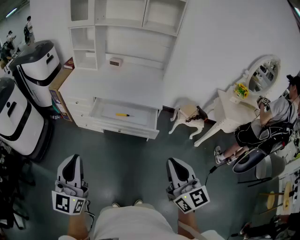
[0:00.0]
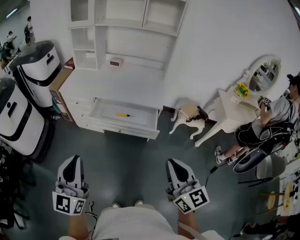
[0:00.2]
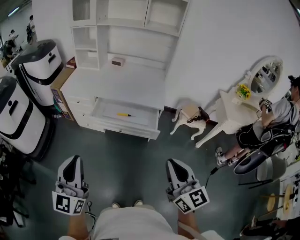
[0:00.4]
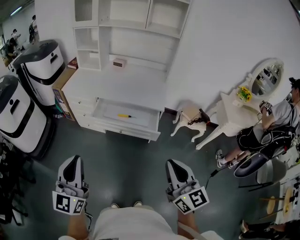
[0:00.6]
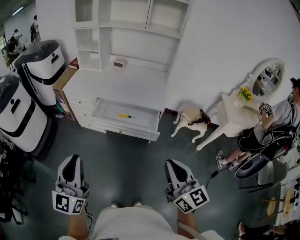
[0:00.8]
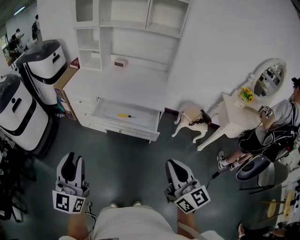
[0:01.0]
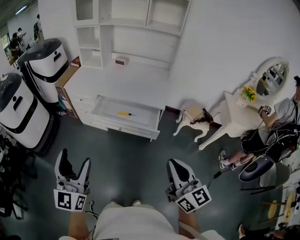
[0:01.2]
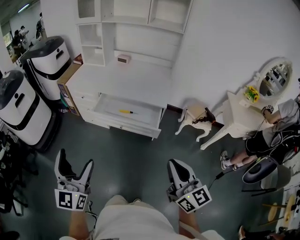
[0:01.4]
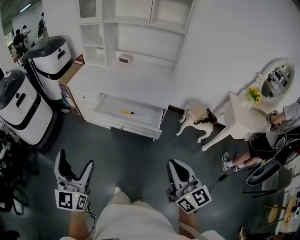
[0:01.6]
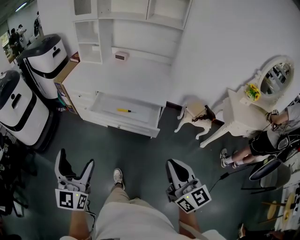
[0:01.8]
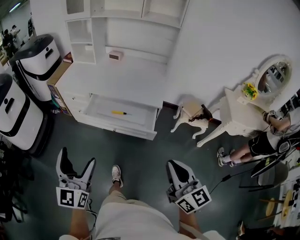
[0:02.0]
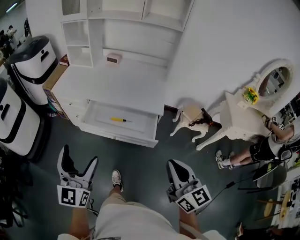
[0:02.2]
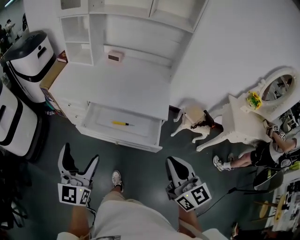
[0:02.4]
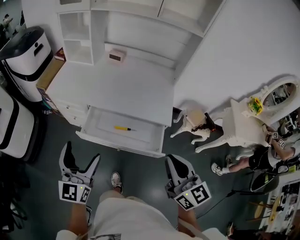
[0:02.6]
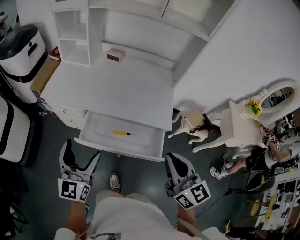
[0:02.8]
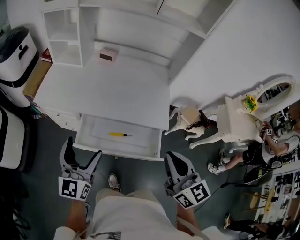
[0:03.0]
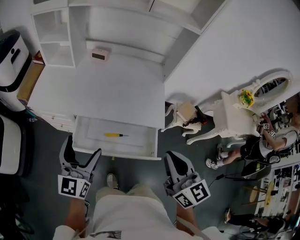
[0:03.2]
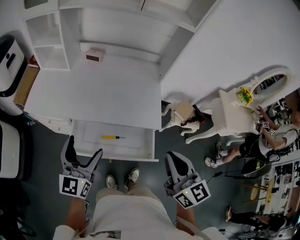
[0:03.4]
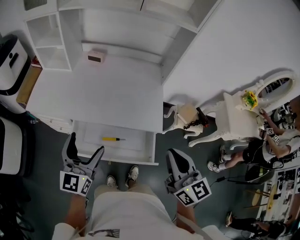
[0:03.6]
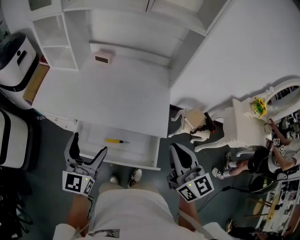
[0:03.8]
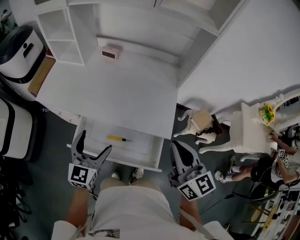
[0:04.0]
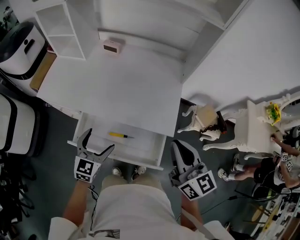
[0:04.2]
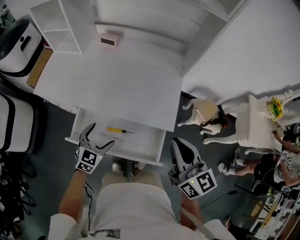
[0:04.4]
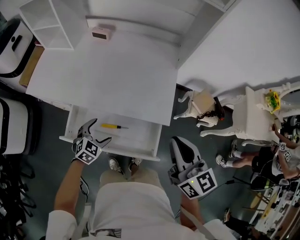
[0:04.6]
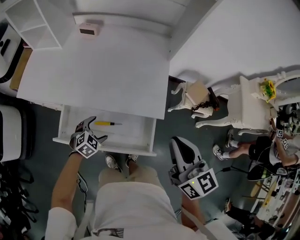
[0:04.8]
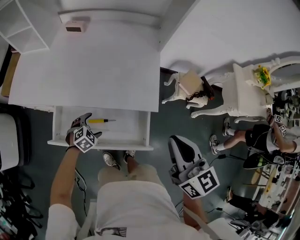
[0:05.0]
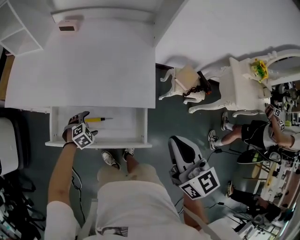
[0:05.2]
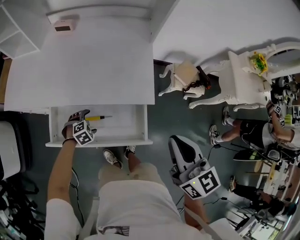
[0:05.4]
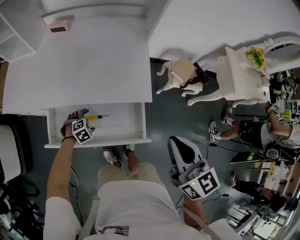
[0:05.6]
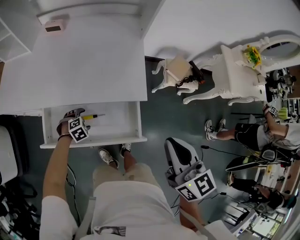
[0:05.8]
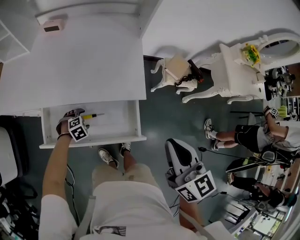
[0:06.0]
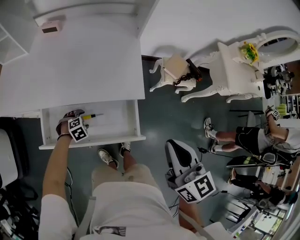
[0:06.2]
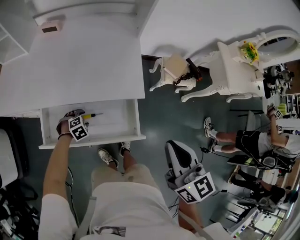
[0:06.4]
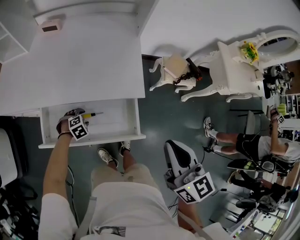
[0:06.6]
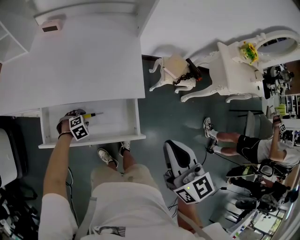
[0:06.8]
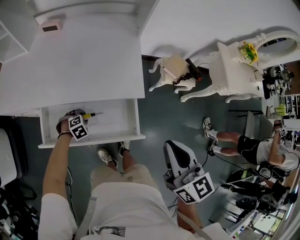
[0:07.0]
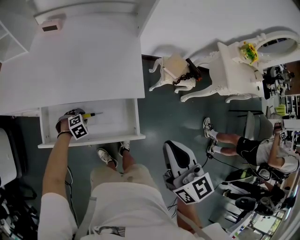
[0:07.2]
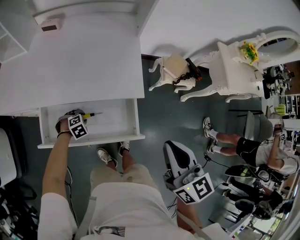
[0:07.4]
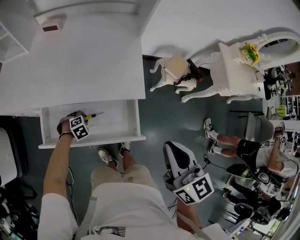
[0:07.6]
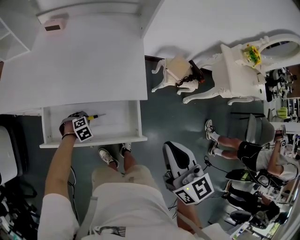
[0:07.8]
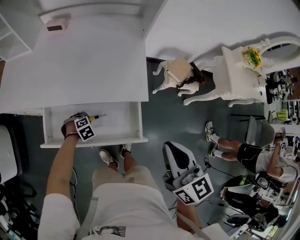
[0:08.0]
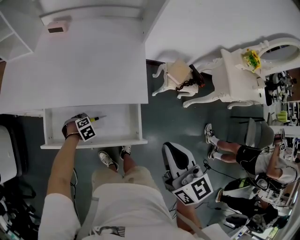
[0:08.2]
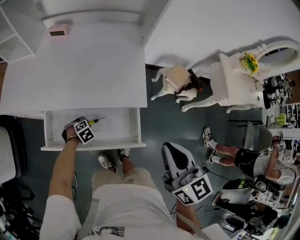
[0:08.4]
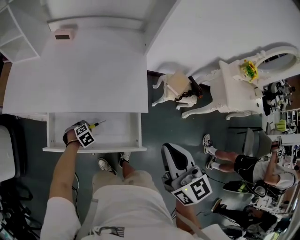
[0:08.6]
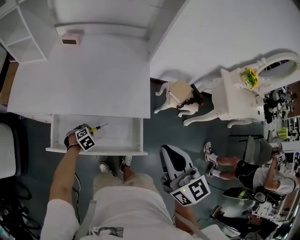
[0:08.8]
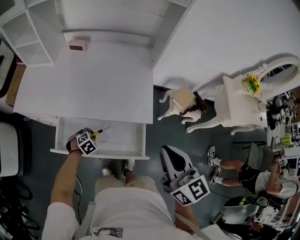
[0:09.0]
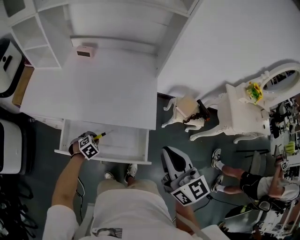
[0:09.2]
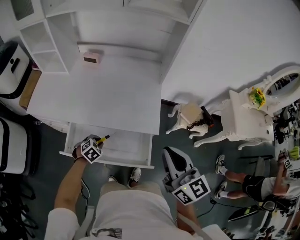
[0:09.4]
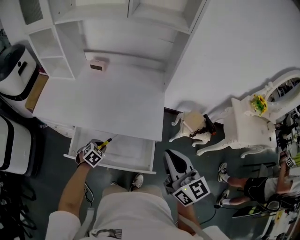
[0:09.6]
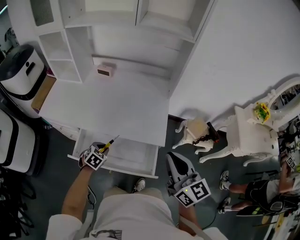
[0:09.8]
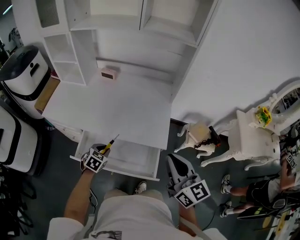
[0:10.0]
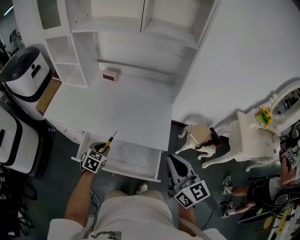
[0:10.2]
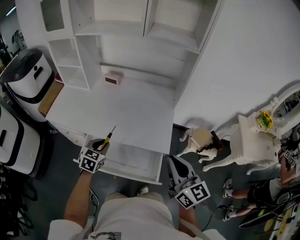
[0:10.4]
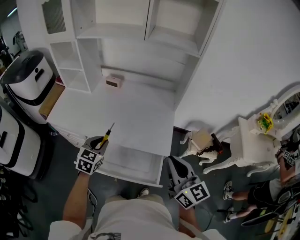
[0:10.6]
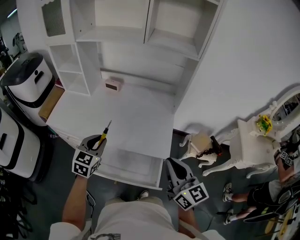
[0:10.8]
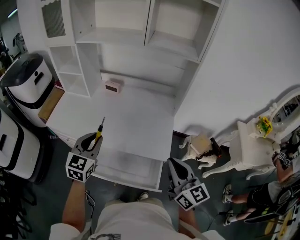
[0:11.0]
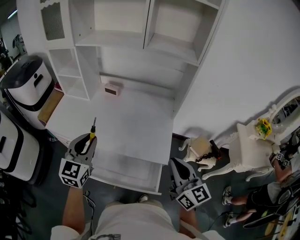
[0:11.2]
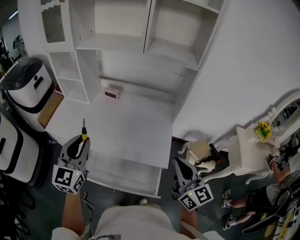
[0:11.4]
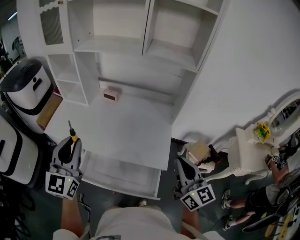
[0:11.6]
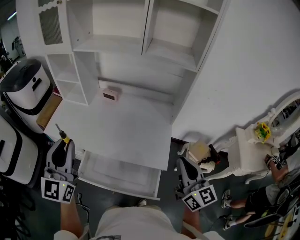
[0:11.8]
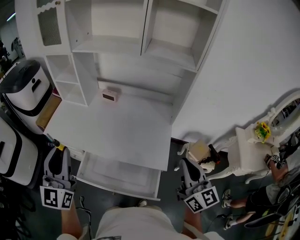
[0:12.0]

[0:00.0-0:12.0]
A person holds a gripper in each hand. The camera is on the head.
0:00.0 to 0:01.6: The right gripper travels to the right by roughly 5 cm, while the left gripper shifts by about 5 cm, and opens.
0:01.6 to 0:03.0: The two grippers go approximately 40 cm forward.
0:03.0 to 0:04.4: The right gripper shifts approximately 20 cm forward, to the right and downward. Meanwhile the left gripper goes roughly 30 cm downward, to the right and forward, and tips its fingers downward by about 40 degrees.
0:04.4 to 0:06.0: The left gripper is displaced downward by roughly 25 cm, and tips its fingers downward by some 40 degrees; the right gripper changes place by some 10 cm.
0:06.0 to 0:07.6: The left gripper closes up.
0:07.6 to 0:09.0: The grippers both shift upward by about 5 cm.
0:09.0 to 0:10.4: The left gripper is displaced upward by roughly 25 cm, and tilts its fingers approximately 40 degrees upward.
0:10.4 to 0:12.0: The left gripper goes some 30 cm upward, and tilts its fingers some 50 degrees upward; the right gripper travels upward and forward by some 10 cm.

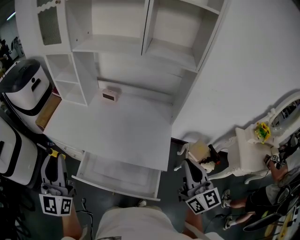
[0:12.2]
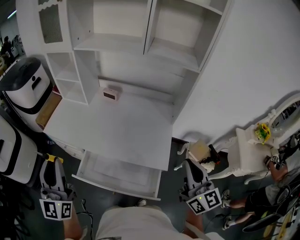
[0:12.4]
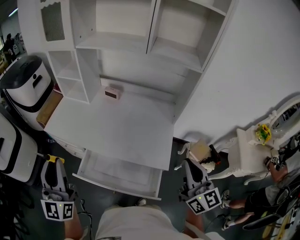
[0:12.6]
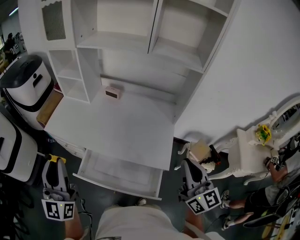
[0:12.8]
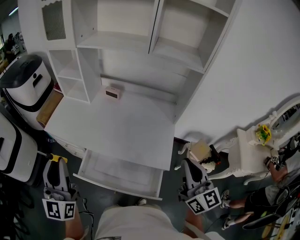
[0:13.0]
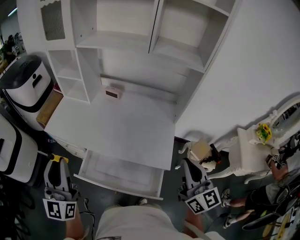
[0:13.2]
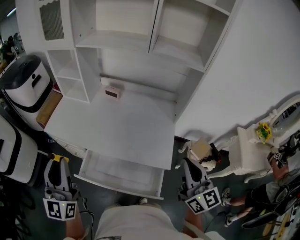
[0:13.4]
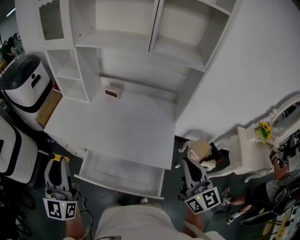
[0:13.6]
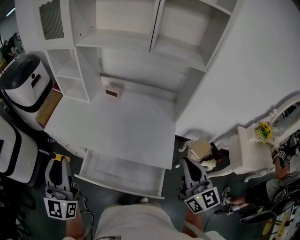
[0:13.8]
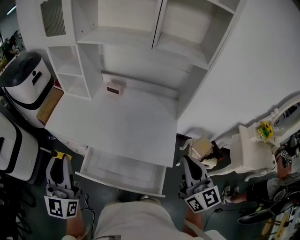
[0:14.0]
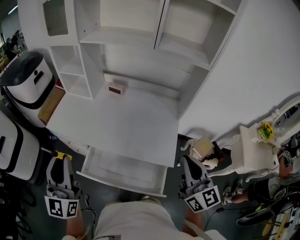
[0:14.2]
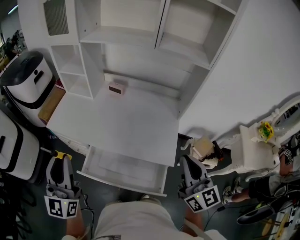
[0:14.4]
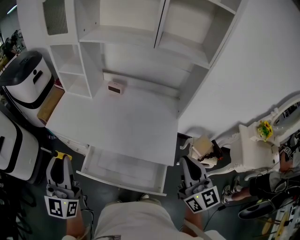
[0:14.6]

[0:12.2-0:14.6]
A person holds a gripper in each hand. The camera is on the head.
0:12.2 to 0:13.4: There are only small adjustments of the grippers.
0:13.4 to 0:14.6: The grippers move only a little.

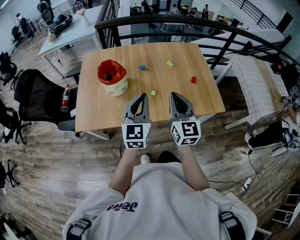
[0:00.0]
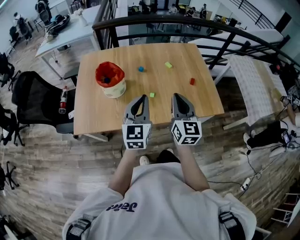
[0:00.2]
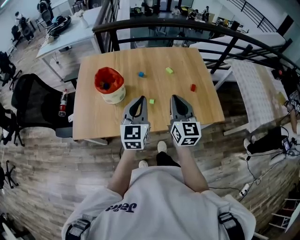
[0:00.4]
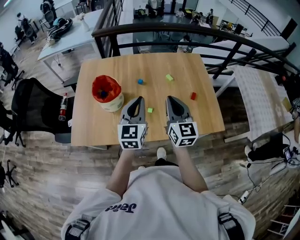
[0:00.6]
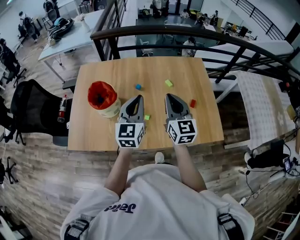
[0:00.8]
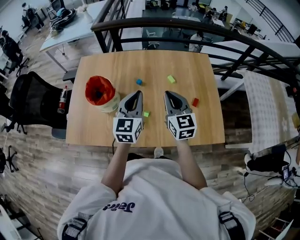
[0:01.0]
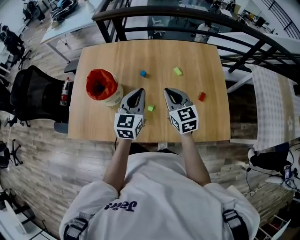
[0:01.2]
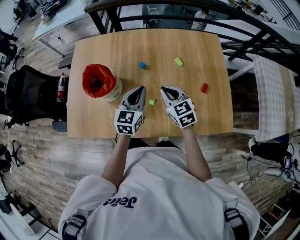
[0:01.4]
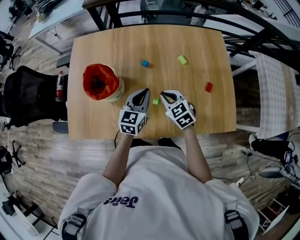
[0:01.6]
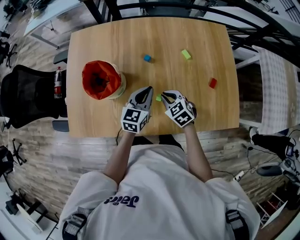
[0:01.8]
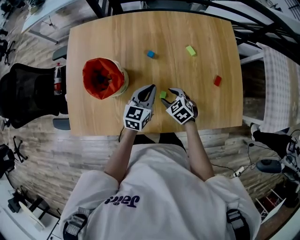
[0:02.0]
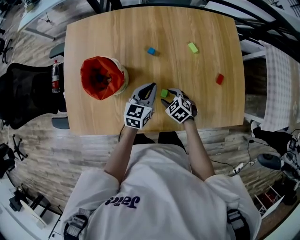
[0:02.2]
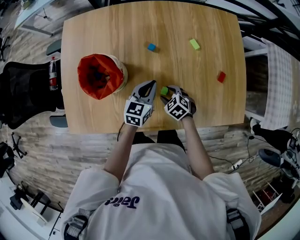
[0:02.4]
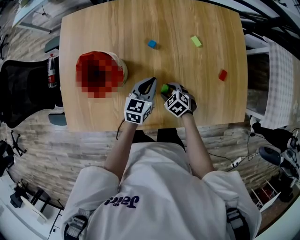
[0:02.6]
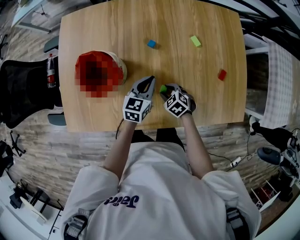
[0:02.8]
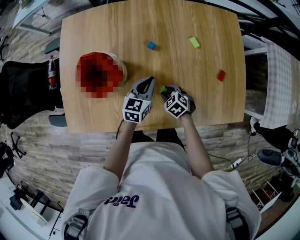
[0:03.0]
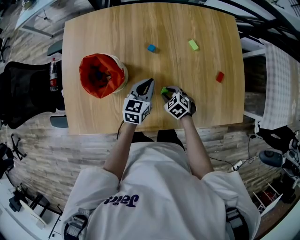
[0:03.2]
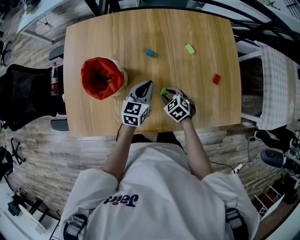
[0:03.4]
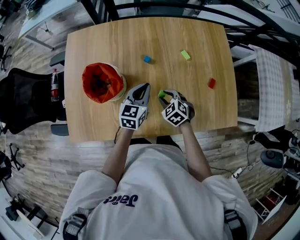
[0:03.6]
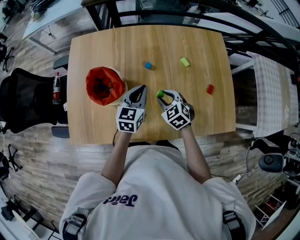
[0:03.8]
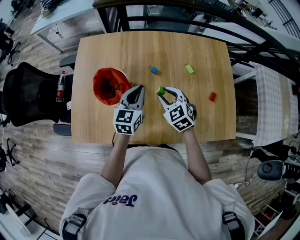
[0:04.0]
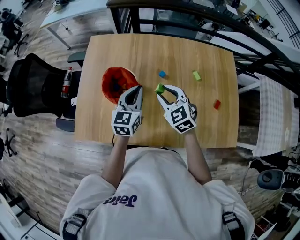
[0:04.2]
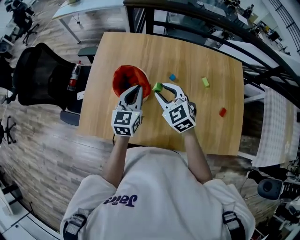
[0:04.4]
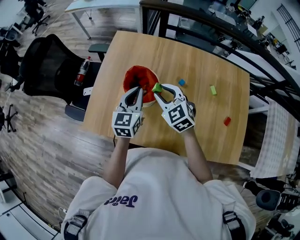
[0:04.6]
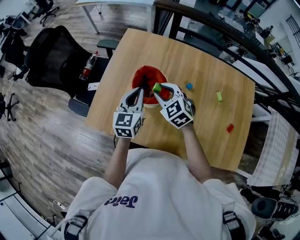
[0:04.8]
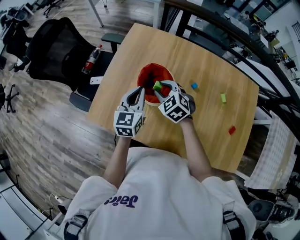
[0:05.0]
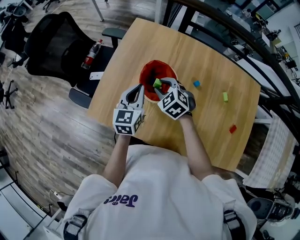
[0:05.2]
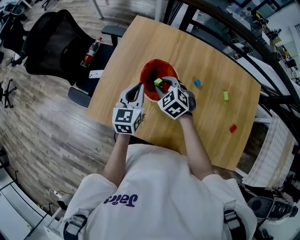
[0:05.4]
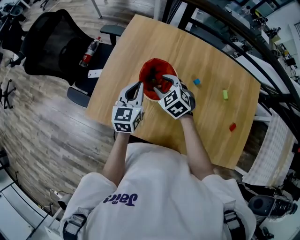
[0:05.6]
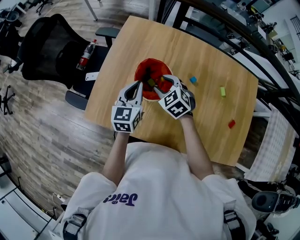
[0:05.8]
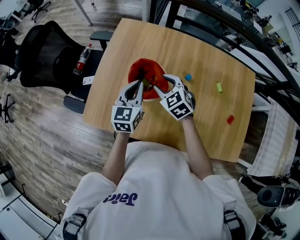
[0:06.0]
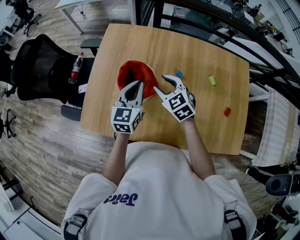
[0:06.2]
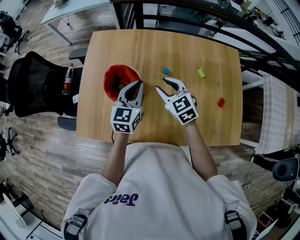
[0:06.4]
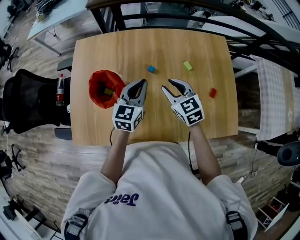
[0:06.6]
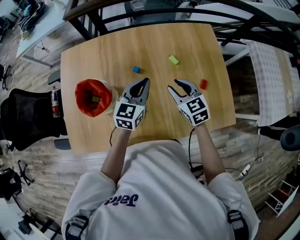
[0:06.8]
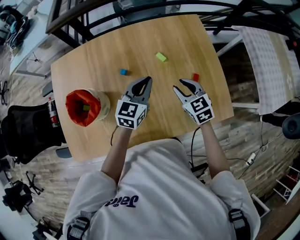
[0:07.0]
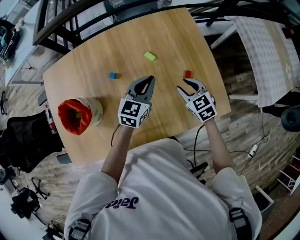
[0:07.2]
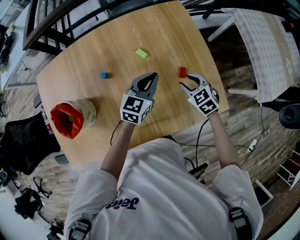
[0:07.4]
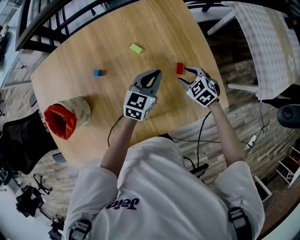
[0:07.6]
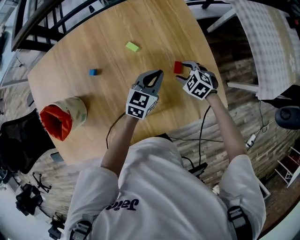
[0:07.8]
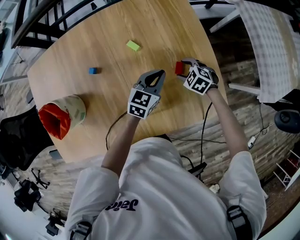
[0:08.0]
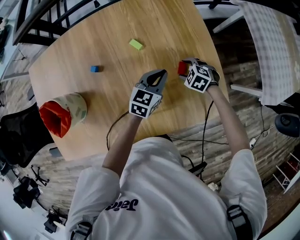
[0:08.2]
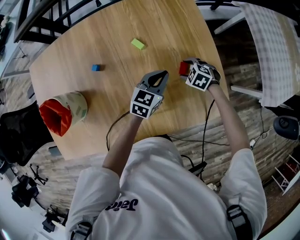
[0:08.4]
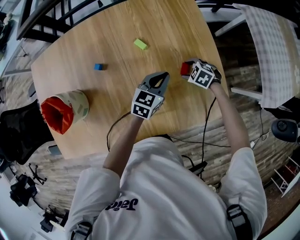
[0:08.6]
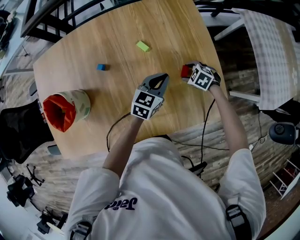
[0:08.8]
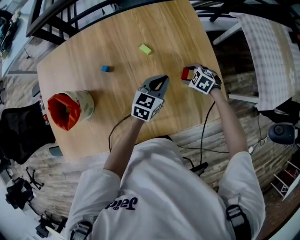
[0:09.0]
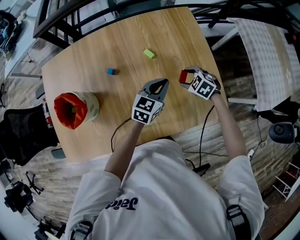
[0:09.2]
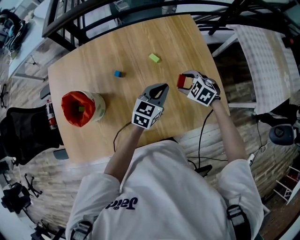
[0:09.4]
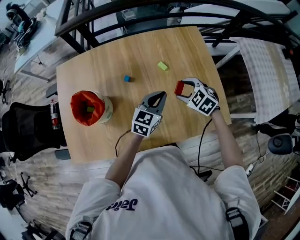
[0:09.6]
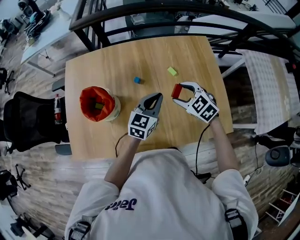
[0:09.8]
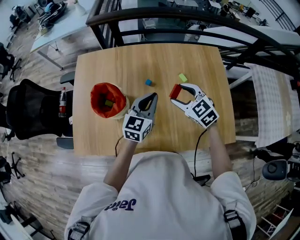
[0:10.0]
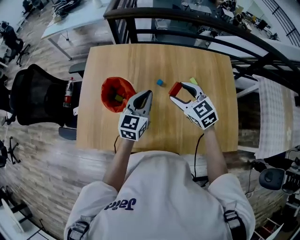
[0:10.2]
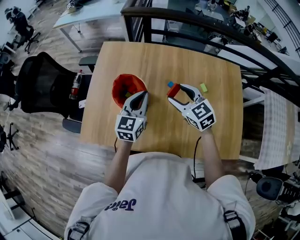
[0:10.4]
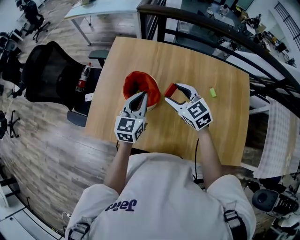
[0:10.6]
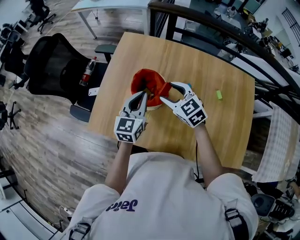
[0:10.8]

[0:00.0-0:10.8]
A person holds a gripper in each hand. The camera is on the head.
0:00.0 to 0:01.6: The two grippers go approximately 35 cm forward and downward. The left gripper rotates approximately 20 degrees, while the right gripper angles its fingers downward, by approximately 40 degrees.
0:01.6 to 0:03.0: The left gripper is displaced downward by roughly 10 cm. The right gripper moves downward, about 20 cm, turns by approximately 30 degrees, and opens up.
0:03.0 to 0:04.6: The left gripper shifts about 25 cm to the left and upward, and turns by roughly 30 degrees; the right gripper travels upward and to the left by roughly 35 cm, and tips its fingers upward by approximately 30 degrees.
0:04.6 to 0:06.2: The right gripper travels to the left and back again, approximately 5 cm each way, while the left gripper goes to the left and returns, about 10 cm each way.
0:06.2 to 0:07.8: The two grippers travel together, approximately 50 cm. The left gripper rotates approximately 50 degrees. Meanwhile the right gripper swivels roughly 30 degrees.
0:07.8 to 0:09.2: Both grippers move upward and to the left, roughly 10 cm.
0:09.2 to 0:10.8: The pair of grippers is taken some 50 cm. The right gripper points its fingers about 30 degrees further upward, while the left gripper swivels roughly 50 degrees.
